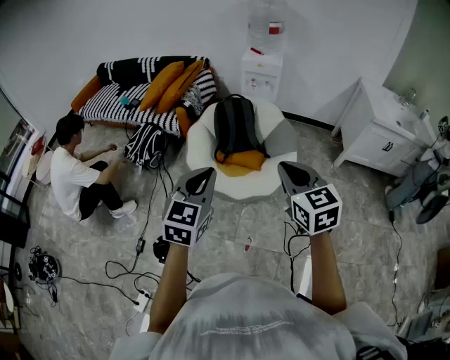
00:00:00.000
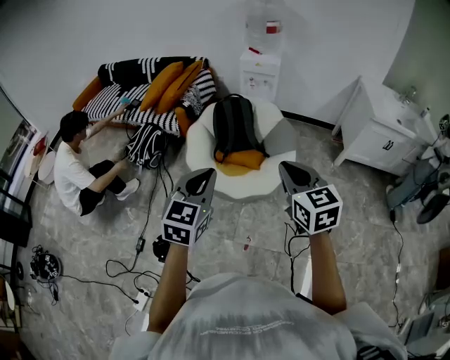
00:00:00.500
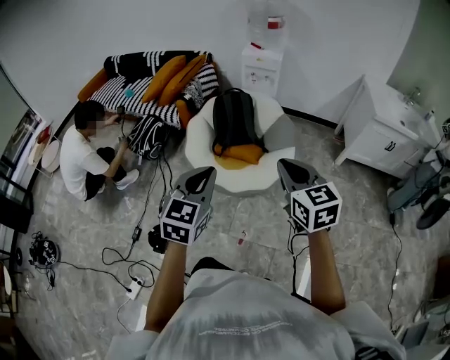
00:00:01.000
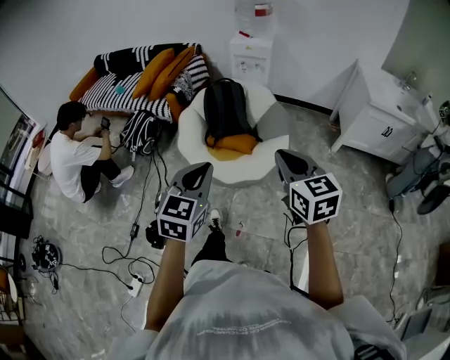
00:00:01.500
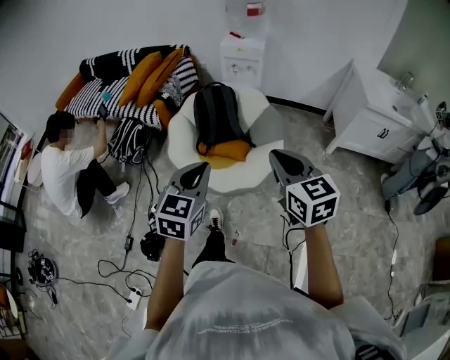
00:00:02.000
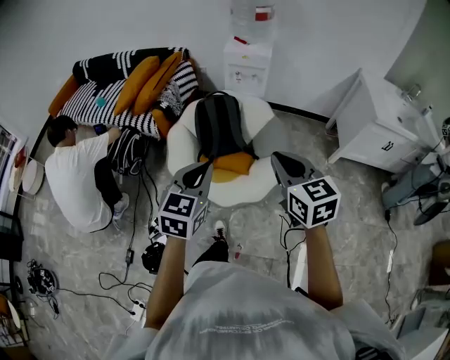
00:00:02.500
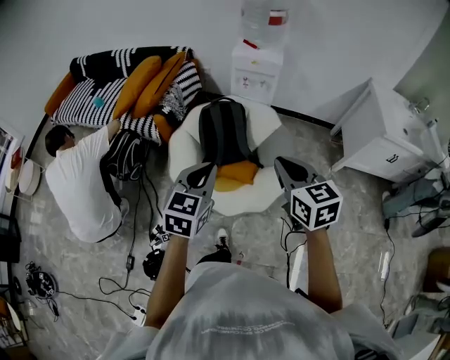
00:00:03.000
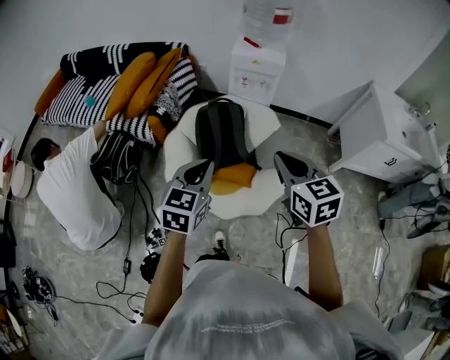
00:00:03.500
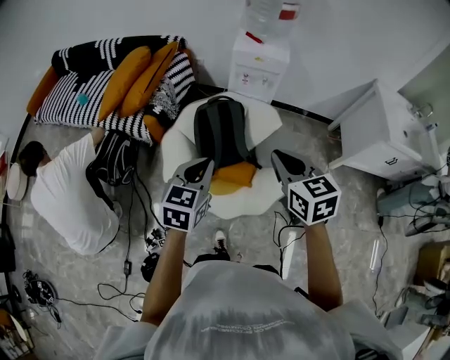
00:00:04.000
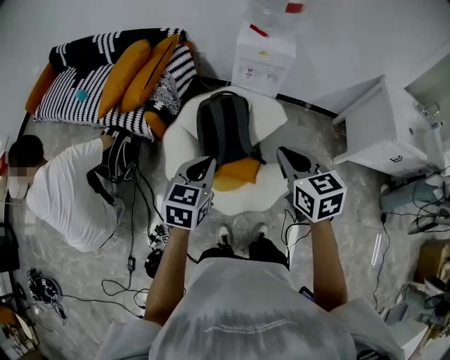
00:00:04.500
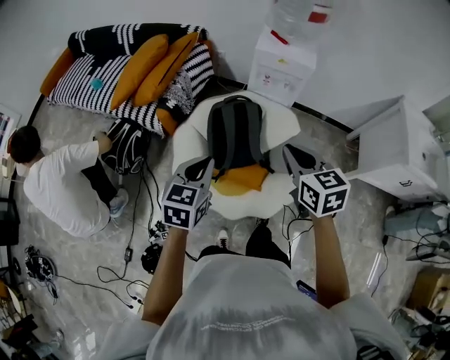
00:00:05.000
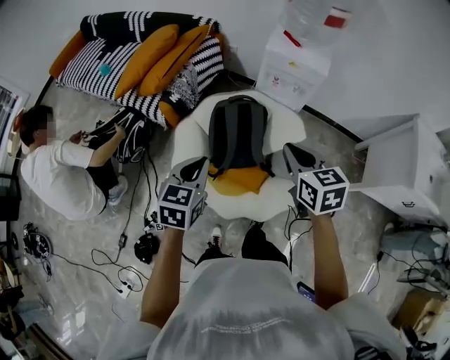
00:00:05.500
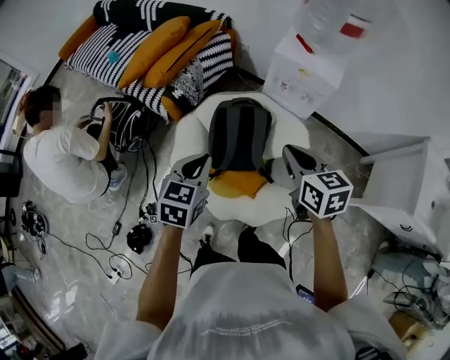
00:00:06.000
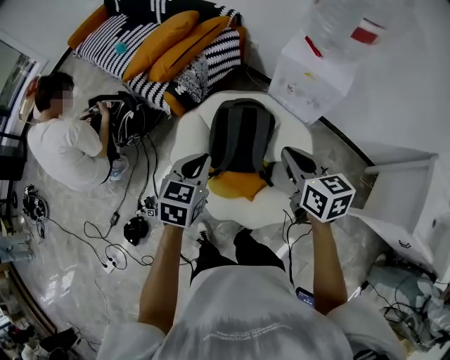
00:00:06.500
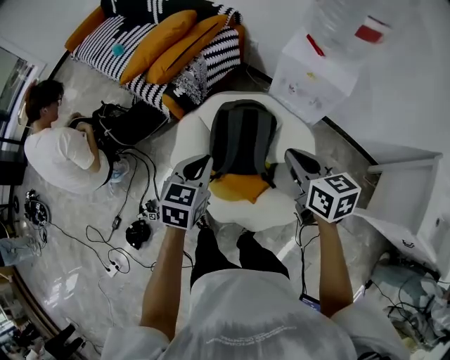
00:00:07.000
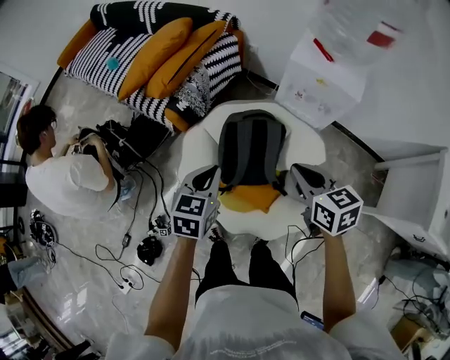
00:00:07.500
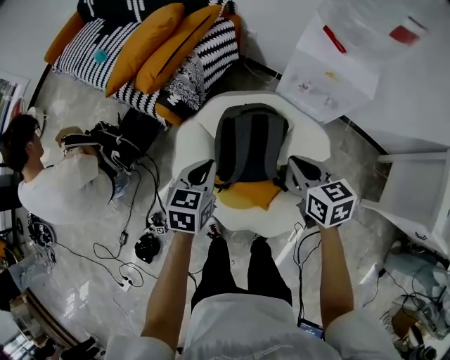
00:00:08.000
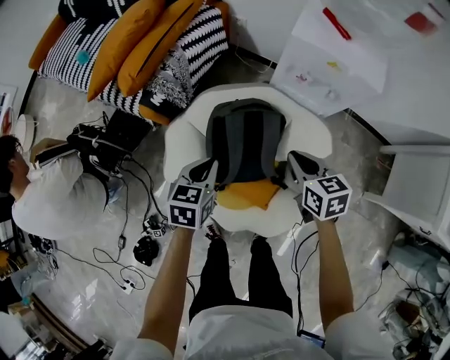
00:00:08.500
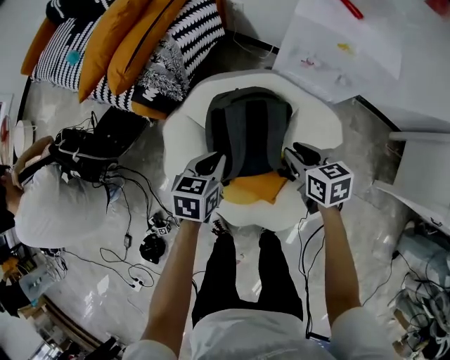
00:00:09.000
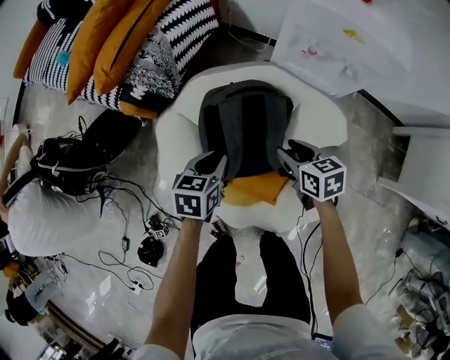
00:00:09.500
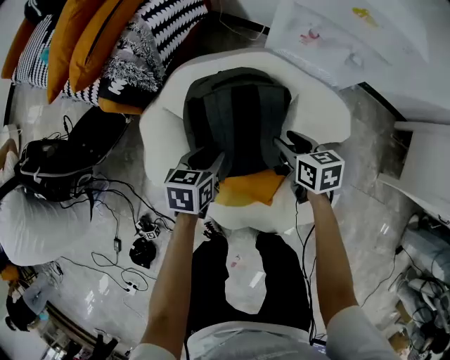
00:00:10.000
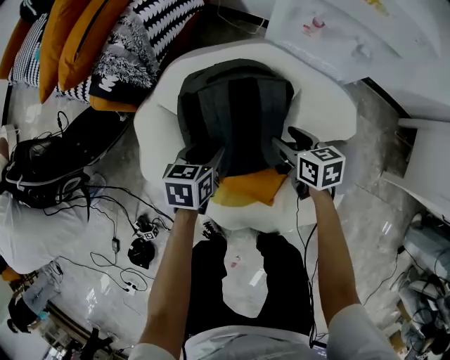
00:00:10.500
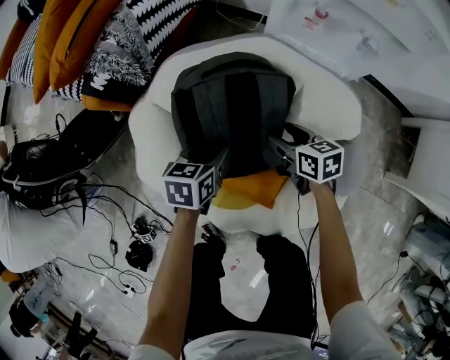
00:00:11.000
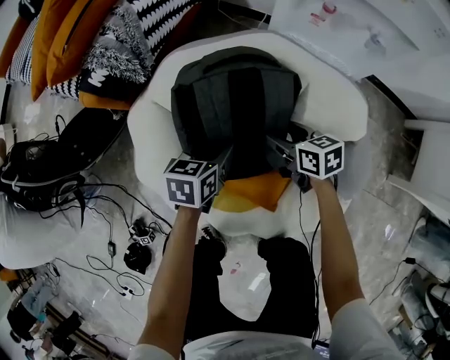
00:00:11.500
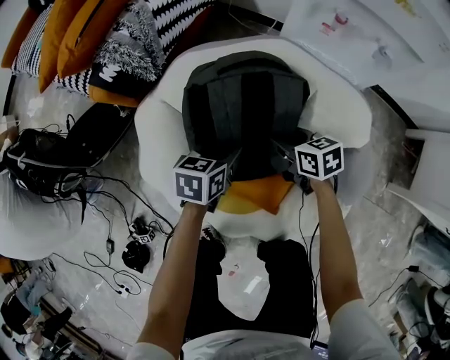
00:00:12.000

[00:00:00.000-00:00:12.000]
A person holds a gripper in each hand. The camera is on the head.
00:00:00.000 to 00:00:02.000: The left gripper goes roughly 10 cm to the right, forward and downward. The right gripper heads to the right and forward, covering some 10 cm.
00:00:02.000 to 00:00:04.000: The grippers both shift forward by roughly 35 cm.
00:00:04.000 to 00:00:06.000: The right gripper goes about 20 cm forward, while the left gripper heads forward and downward, covering about 15 cm, and swivels some 20 degrees.
00:00:06.000 to 00:00:08.000: Both grippers travel together downward and forward, about 20 cm.
00:00:08.000 to 00:00:10.000: The two grippers go approximately 30 cm downward. The left gripper opens up. The right gripper opens up.
00:00:10.000 to 00:00:12.000: Both grippers move downward, about 10 cm.

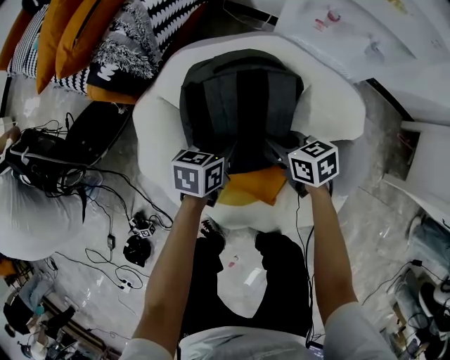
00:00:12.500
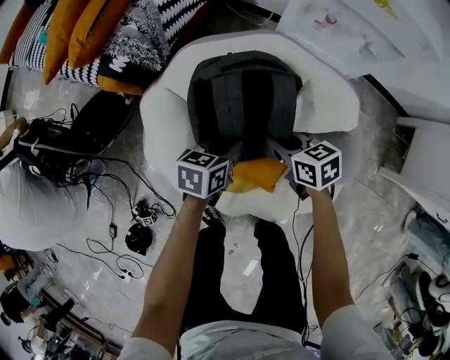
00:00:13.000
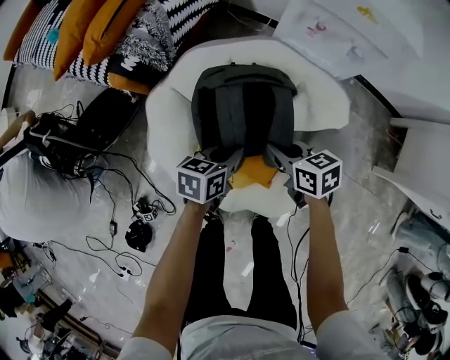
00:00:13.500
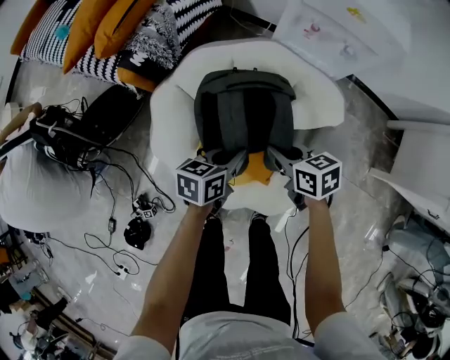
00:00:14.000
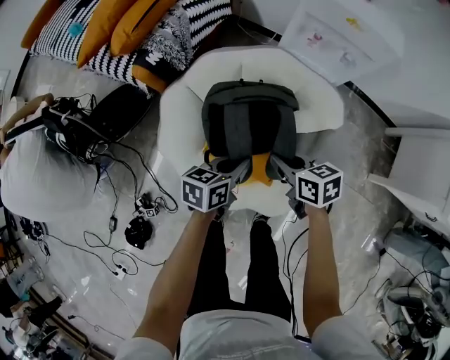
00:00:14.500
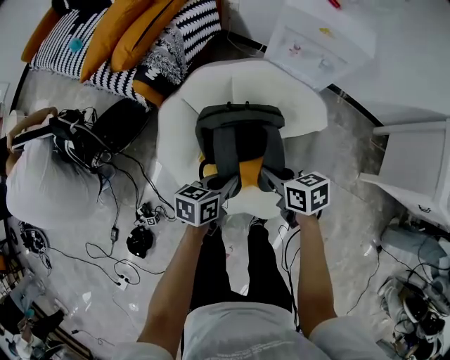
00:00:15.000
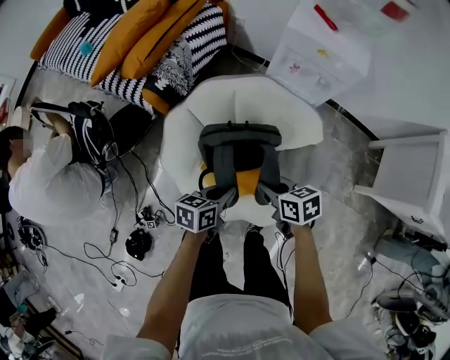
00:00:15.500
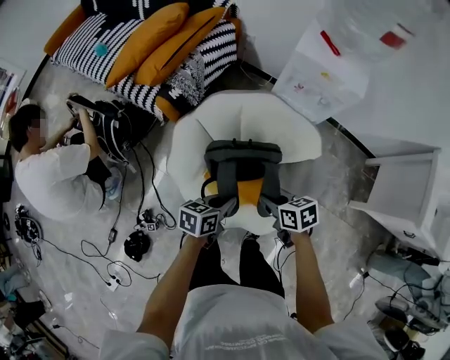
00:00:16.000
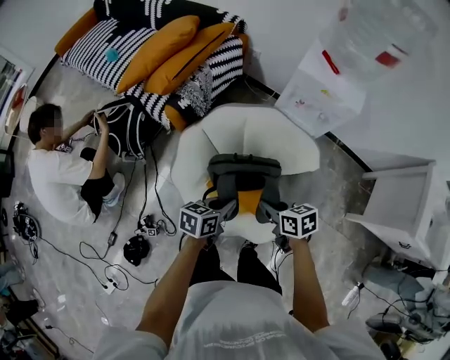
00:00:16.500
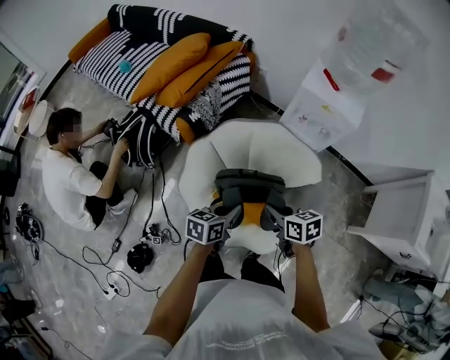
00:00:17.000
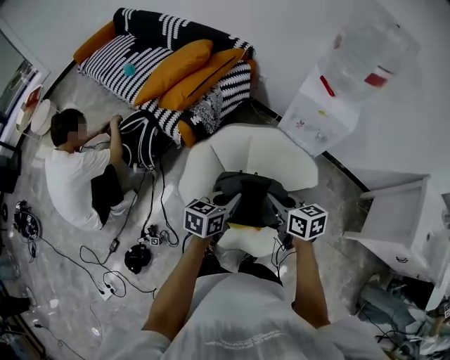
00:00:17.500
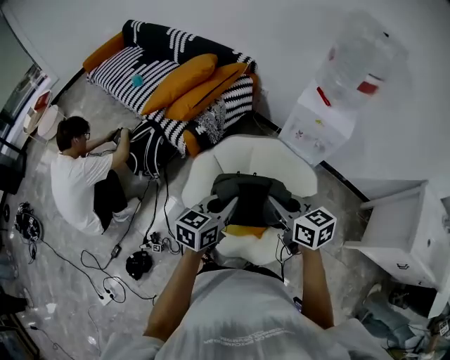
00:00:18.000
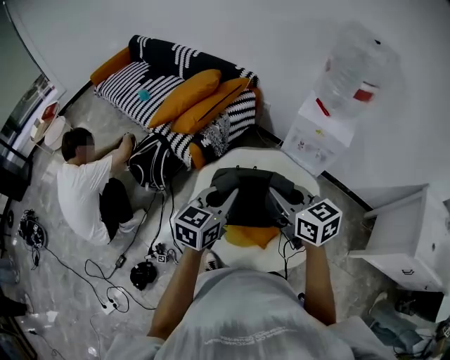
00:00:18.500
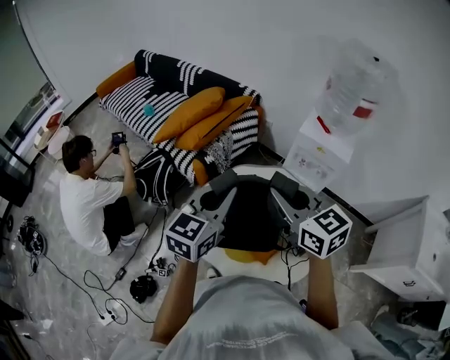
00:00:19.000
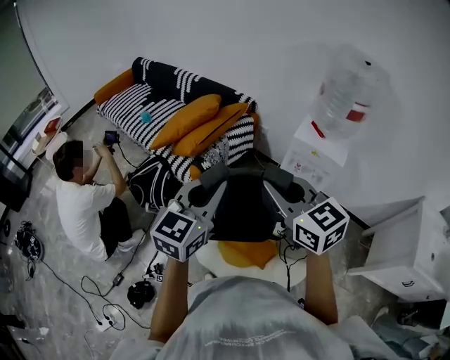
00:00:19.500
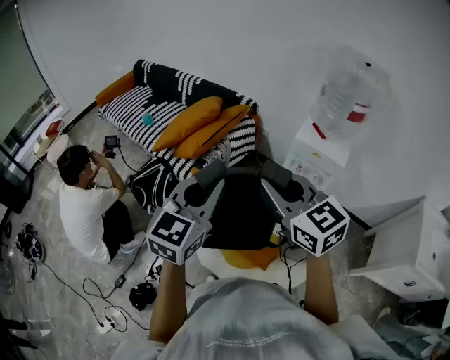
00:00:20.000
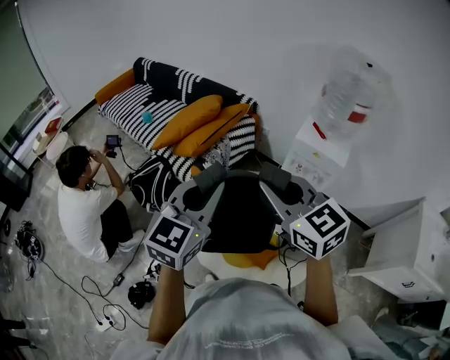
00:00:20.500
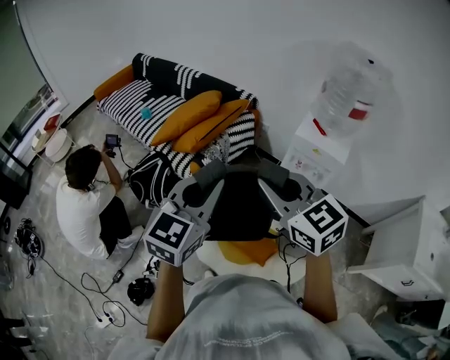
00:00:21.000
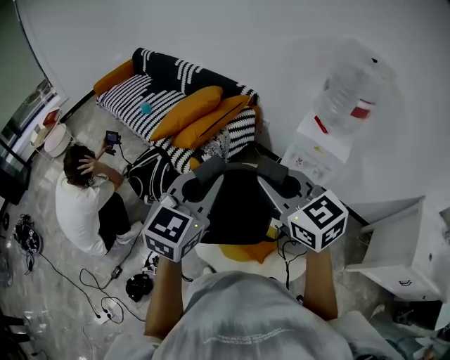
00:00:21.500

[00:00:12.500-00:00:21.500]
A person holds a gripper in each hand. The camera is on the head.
00:00:12.500 to 00:00:14.500: The two grippers go about 20 cm upward and backward.
00:00:14.500 to 00:00:17.000: The two grippers go roughly 15 cm upward.
00:00:17.000 to 00:00:19.500: Both grippers travel together upward, approximately 35 cm. The right gripper changes its angle by some 50 degrees, while the left gripper rotates some 50 degrees.
00:00:19.500 to 00:00:21.500: The grippers make only small movements.

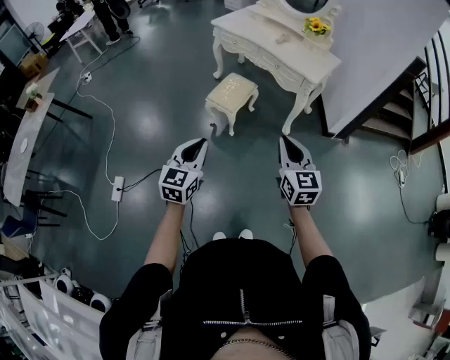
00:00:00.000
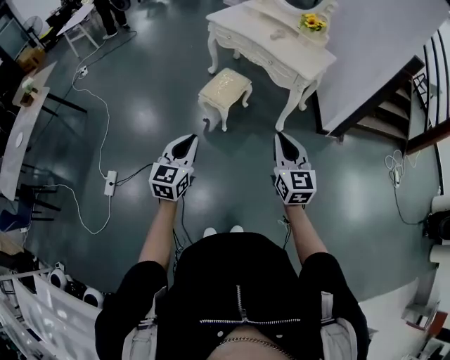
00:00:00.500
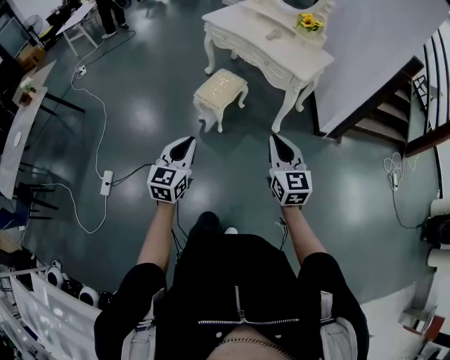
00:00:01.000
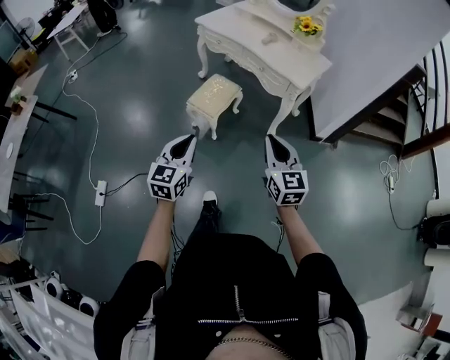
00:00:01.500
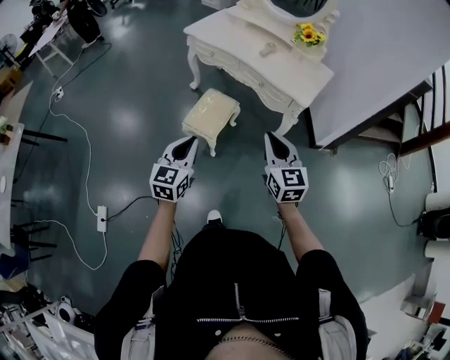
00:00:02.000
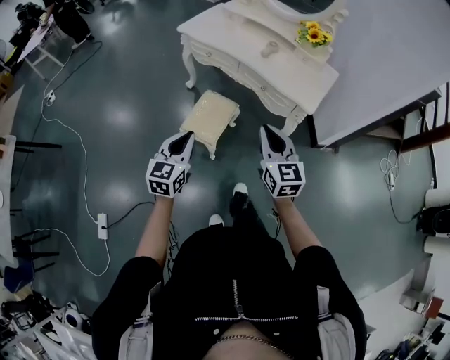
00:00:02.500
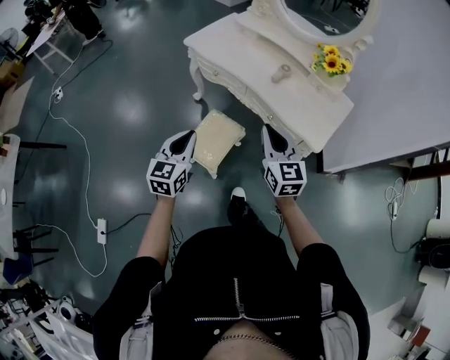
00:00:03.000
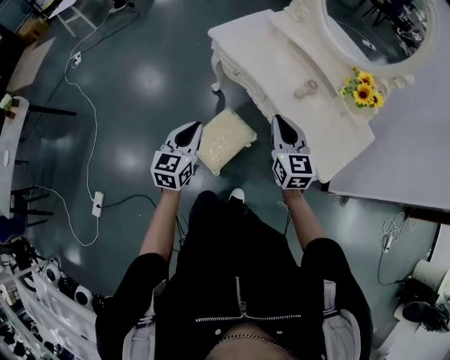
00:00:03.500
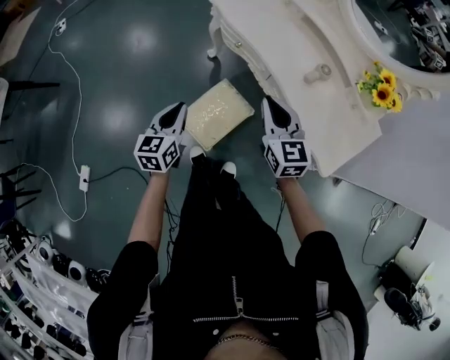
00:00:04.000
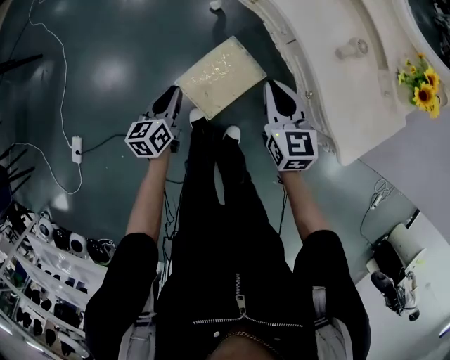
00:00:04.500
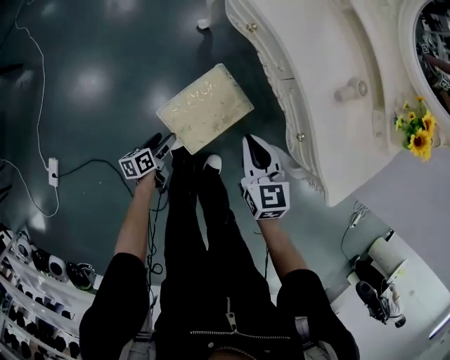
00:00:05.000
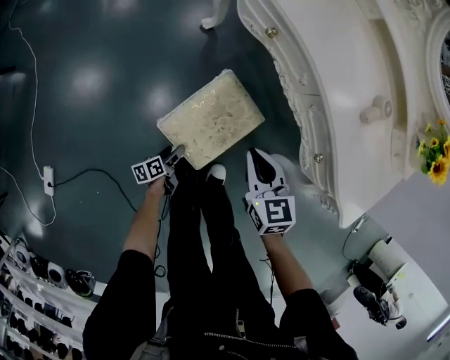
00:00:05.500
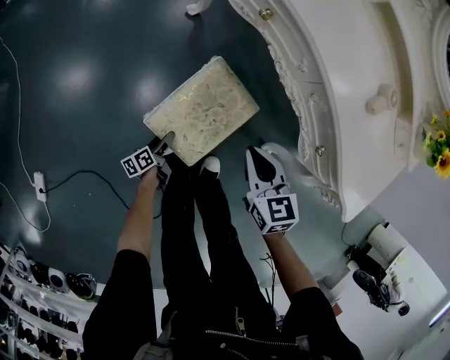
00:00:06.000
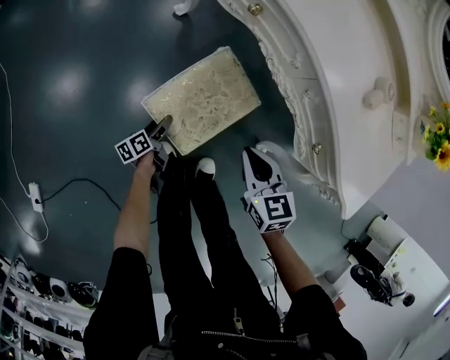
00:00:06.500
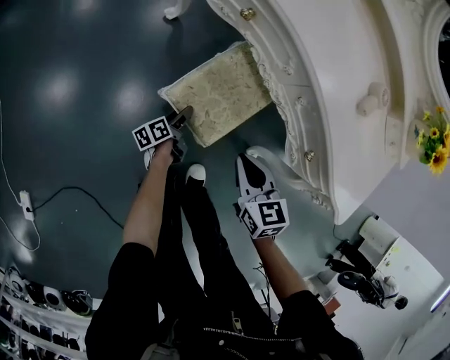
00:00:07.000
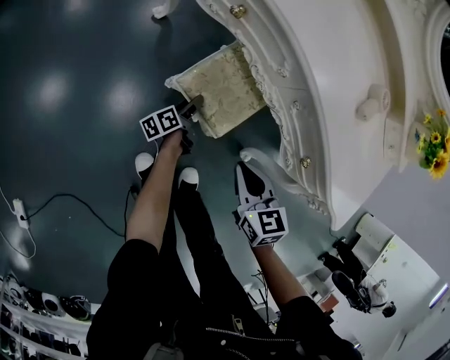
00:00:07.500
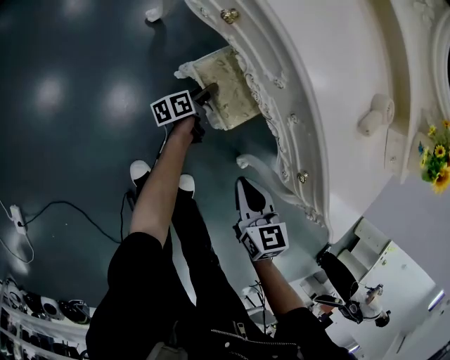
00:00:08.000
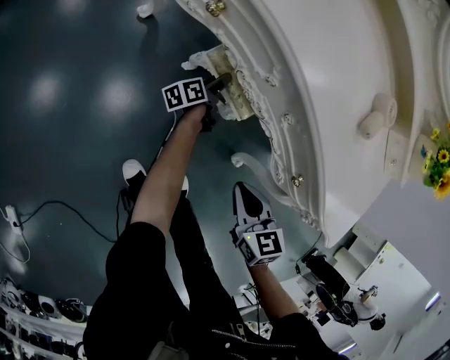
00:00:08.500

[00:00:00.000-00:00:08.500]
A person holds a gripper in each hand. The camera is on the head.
00:00:00.000 to 00:00:02.000: The two grippers go some 25 cm forward.
00:00:02.000 to 00:00:04.000: Both grippers travel together forward, about 40 cm. The left gripper swivels approximately 30 degrees.
00:00:04.000 to 00:00:06.500: The right gripper travels downward by roughly 35 cm, and swivels about 30 degrees. The left gripper goes some 60 cm downward, rolls counterclockwise, seen from behind, by approximately 50 degrees, and opens.
00:00:06.500 to 00:00:08.500: The left gripper moves forward and to the right, about 35 cm; the right gripper is displaced to the right and downward by about 10 cm.
